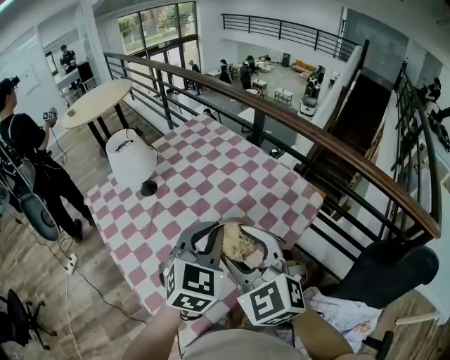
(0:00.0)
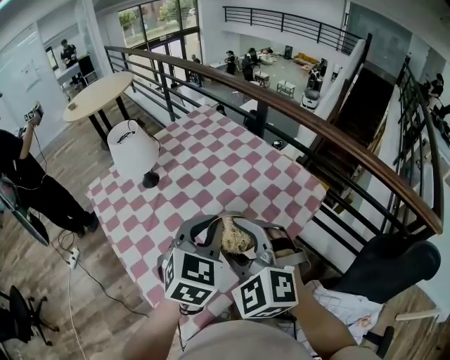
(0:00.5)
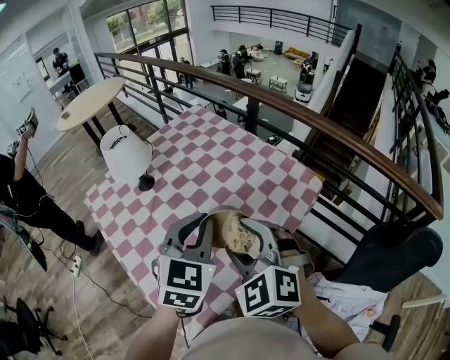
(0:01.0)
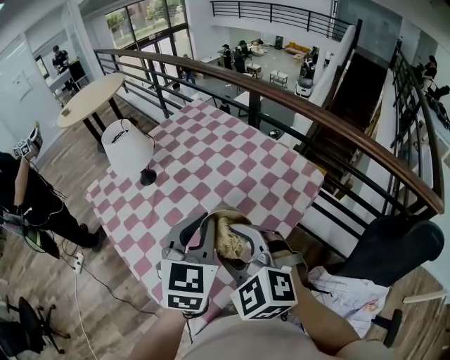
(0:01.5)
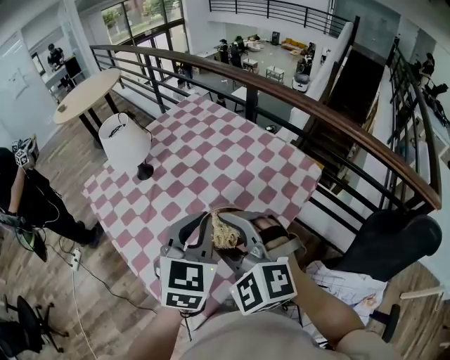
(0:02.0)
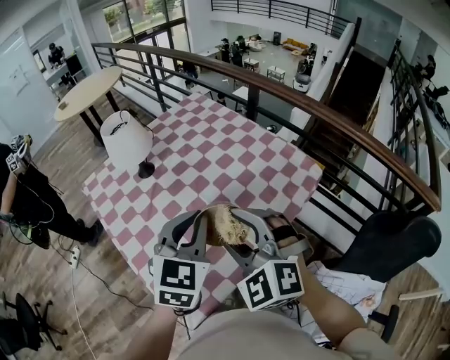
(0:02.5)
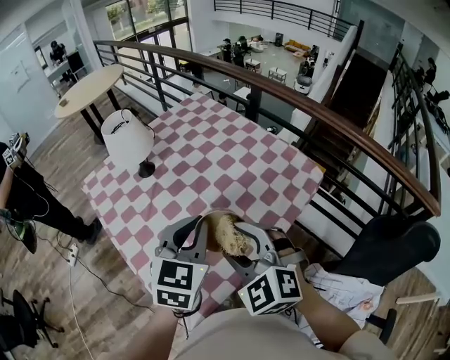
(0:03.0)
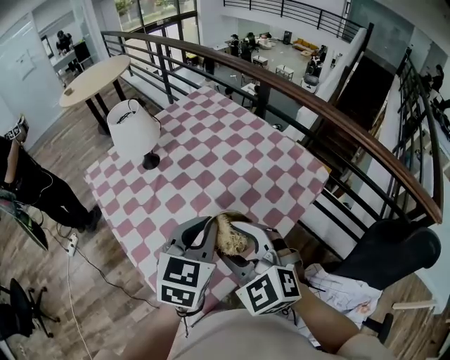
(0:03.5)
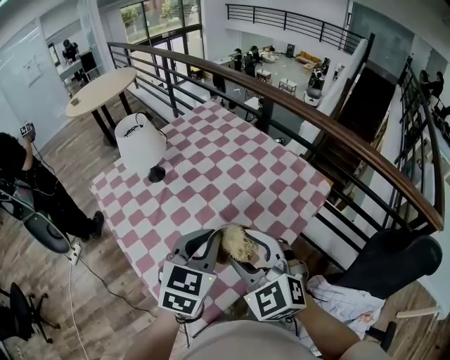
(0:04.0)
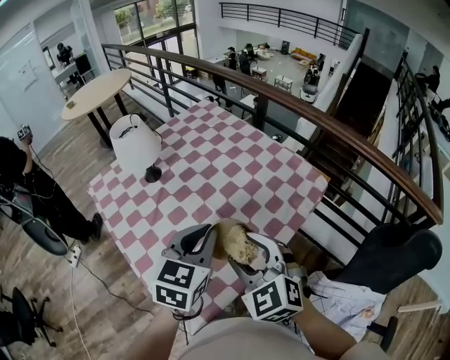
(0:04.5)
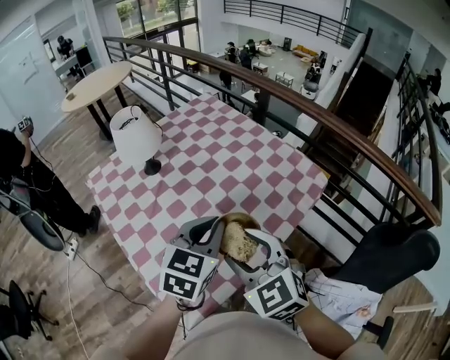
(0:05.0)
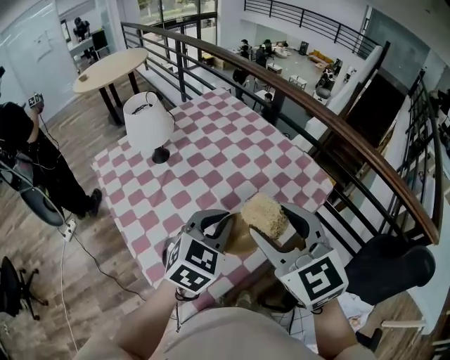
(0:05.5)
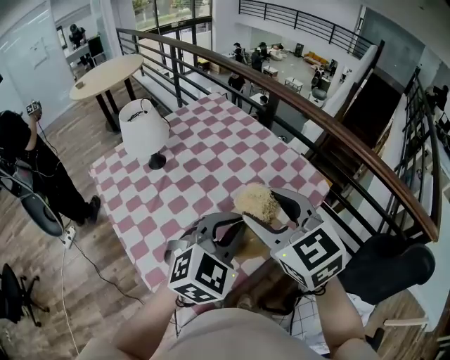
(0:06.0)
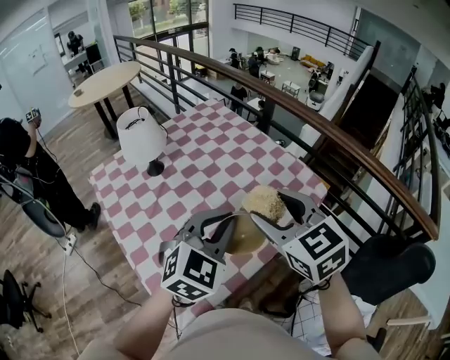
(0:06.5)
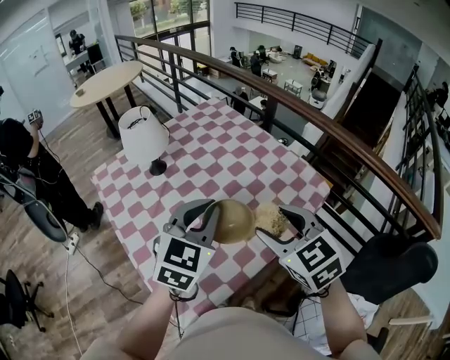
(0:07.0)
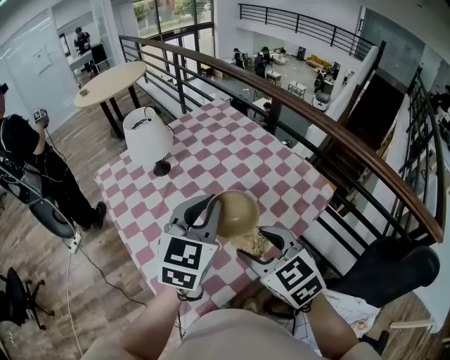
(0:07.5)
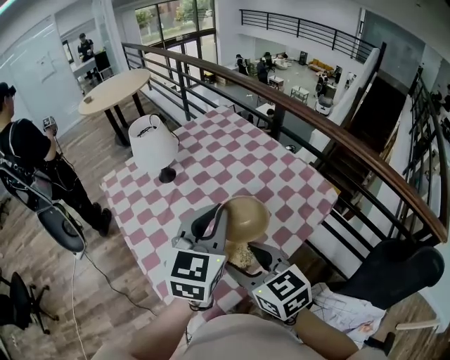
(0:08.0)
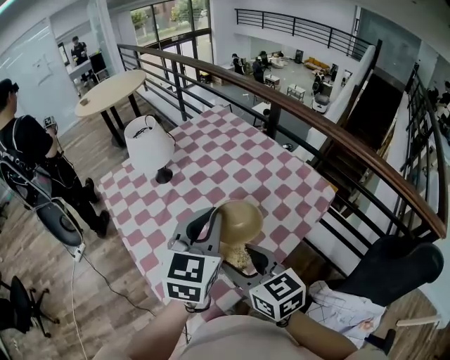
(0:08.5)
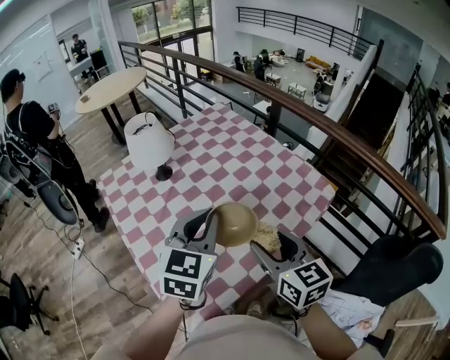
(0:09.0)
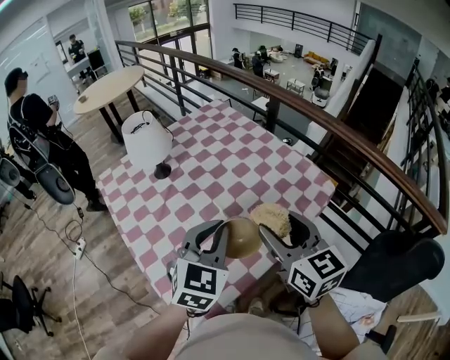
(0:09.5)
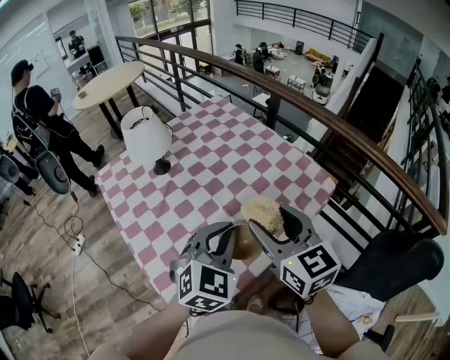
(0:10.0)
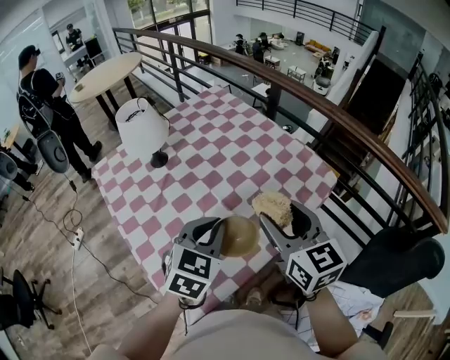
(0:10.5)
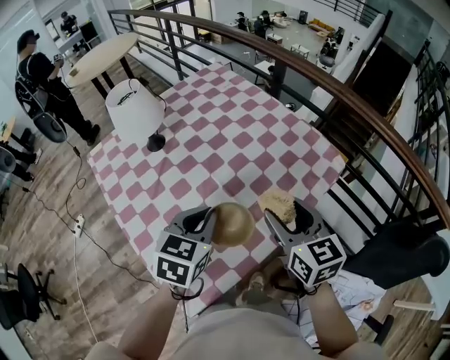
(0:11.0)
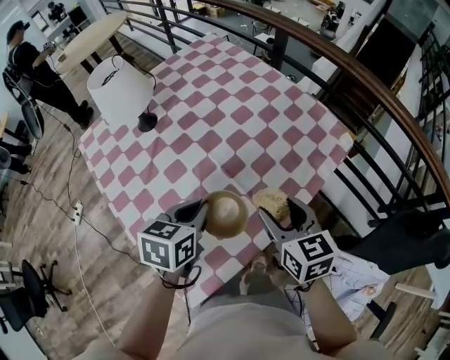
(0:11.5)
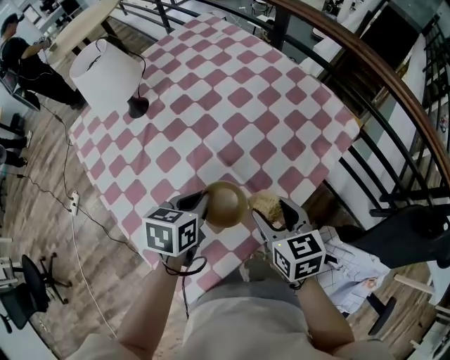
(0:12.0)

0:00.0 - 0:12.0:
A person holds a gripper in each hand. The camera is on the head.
0:00.0 - 0:02.0: The right gripper moves some 5 cm.
0:02.0 - 0:04.0: The grippers move only a little.
0:04.0 - 0:06.0: The left gripper shifts roughly 5 cm to the right, and changes its angle by approximately 30 degrees, while the right gripper is displaced upward by some 10 cm.
0:06.0 - 0:08.0: The right gripper heads downward, to the left and backward, covering approximately 10 cm, while the left gripper is displaced to the left by some 5 cm, and changes its angle by roughly 30 degrees.
0:08.0 - 0:10.0: The right gripper heads to the right and upward, covering approximately 10 cm, while the left gripper travels downward by roughly 5 cm, and rotates some 30 degrees.
0:10.0 - 0:12.0: The two grippers go some 25 cm downward. The left gripper rolls counterclockwise, seen from behind, by roughly 50 degrees. Meanwhile the right gripper changes its angle by some 30 degrees.

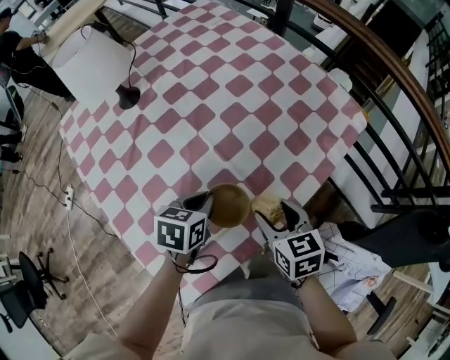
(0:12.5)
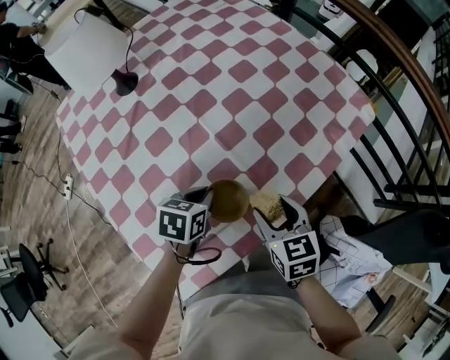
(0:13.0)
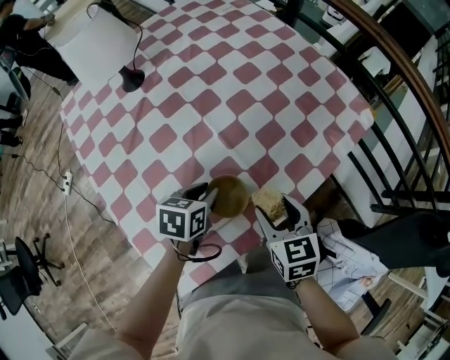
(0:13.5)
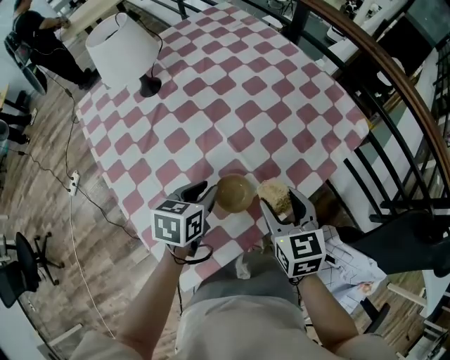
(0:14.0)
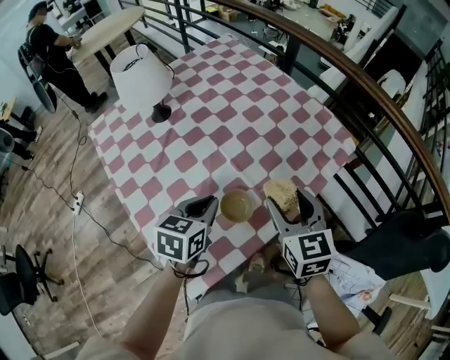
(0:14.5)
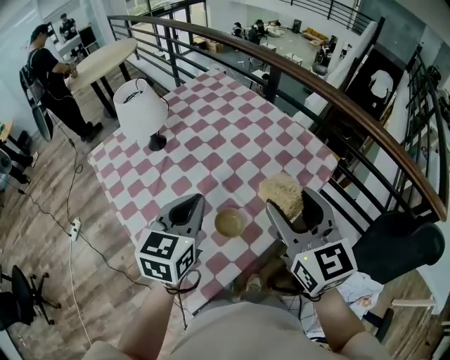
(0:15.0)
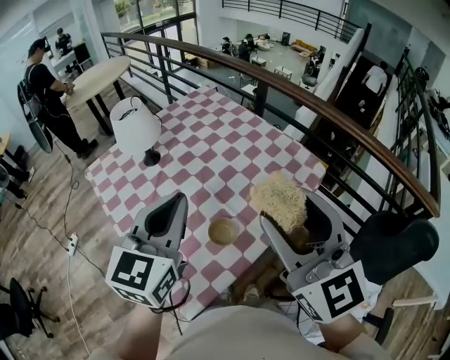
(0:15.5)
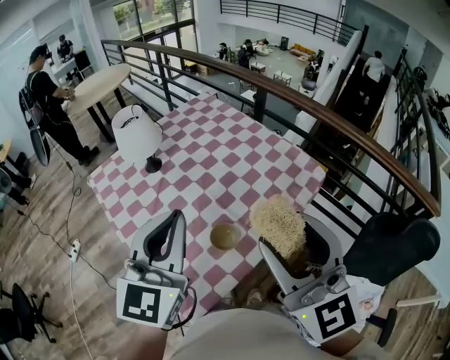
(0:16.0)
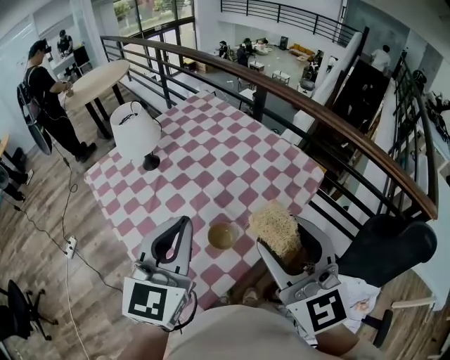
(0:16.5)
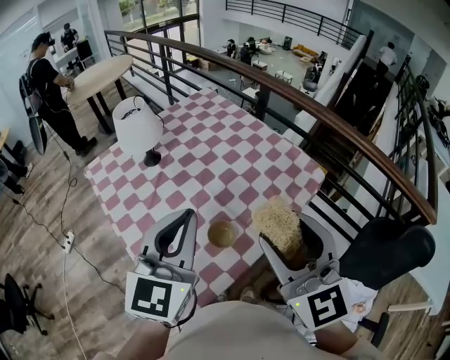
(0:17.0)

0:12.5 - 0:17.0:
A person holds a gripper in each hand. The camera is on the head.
0:12.5 - 0:14.5: The grippers both shift upward by about 15 cm. The right gripper rotates approximately 20 degrees.
0:14.5 - 0:17.0: The left gripper goes about 25 cm upward, and points its fingers about 30 degrees further upward. The right gripper goes some 25 cm upward and backward, and swivels roughly 20 degrees.

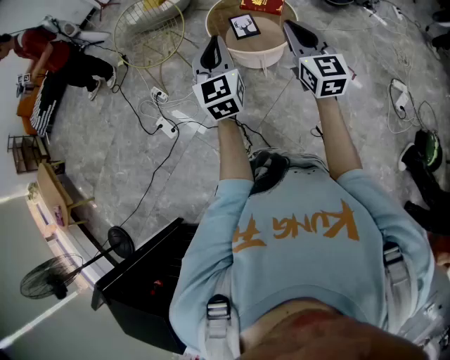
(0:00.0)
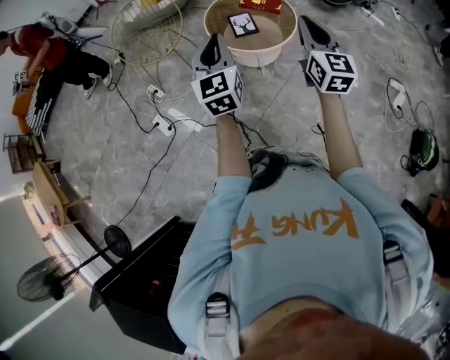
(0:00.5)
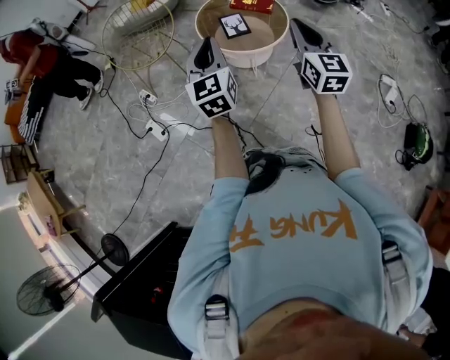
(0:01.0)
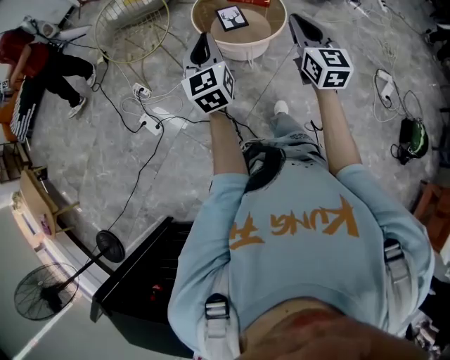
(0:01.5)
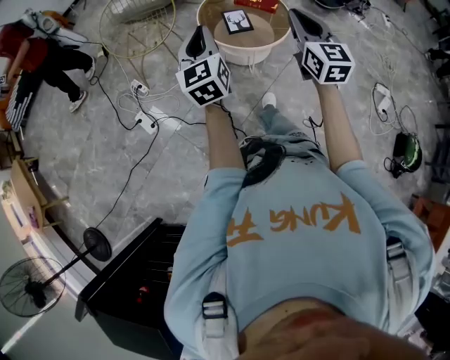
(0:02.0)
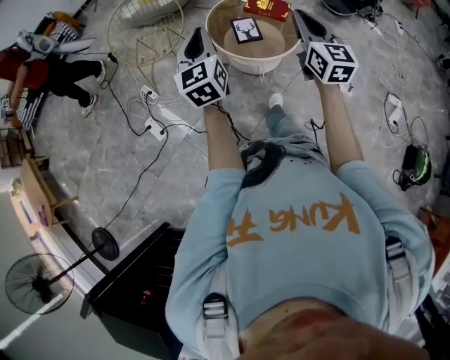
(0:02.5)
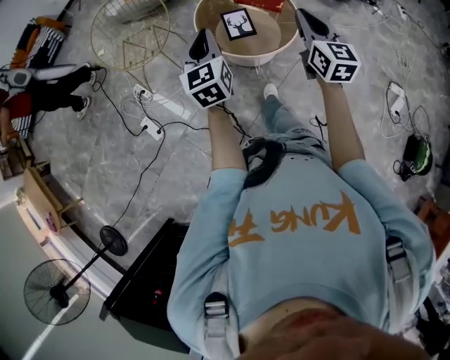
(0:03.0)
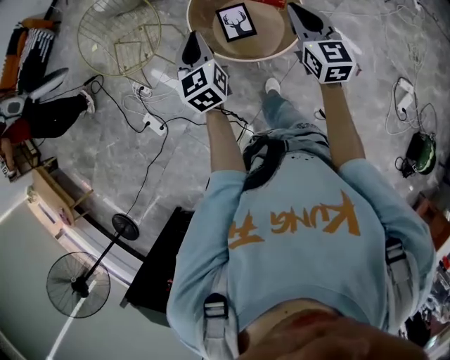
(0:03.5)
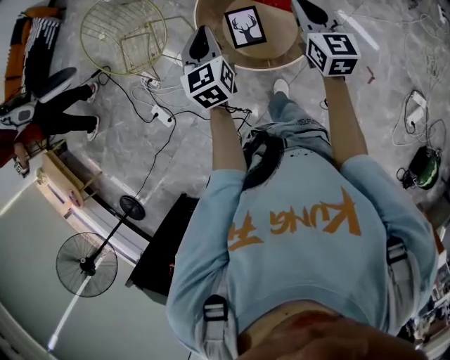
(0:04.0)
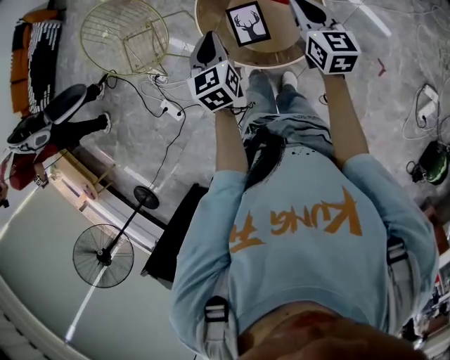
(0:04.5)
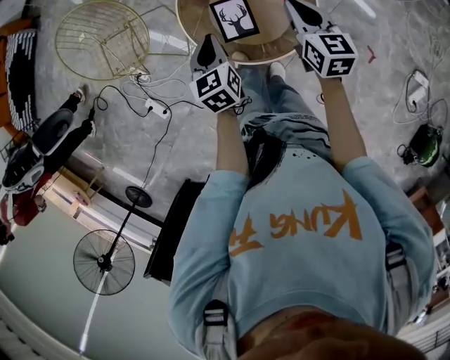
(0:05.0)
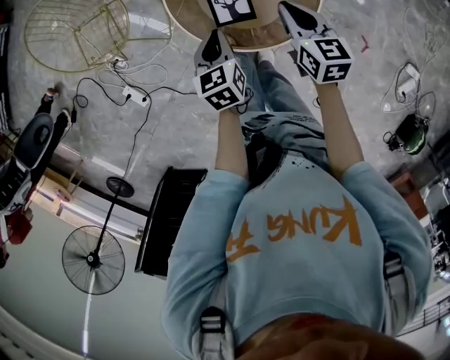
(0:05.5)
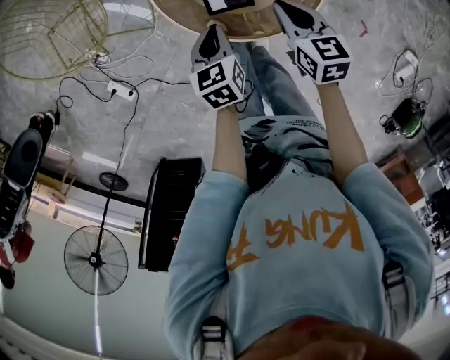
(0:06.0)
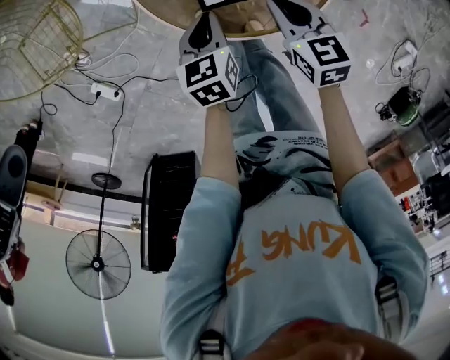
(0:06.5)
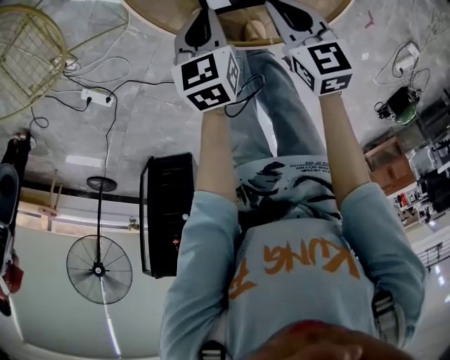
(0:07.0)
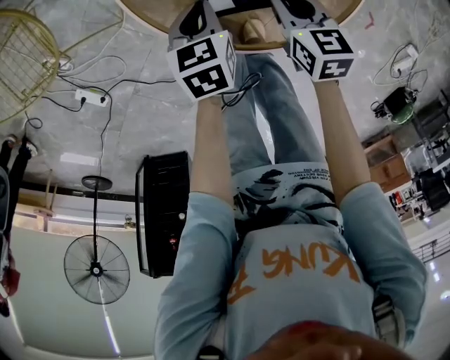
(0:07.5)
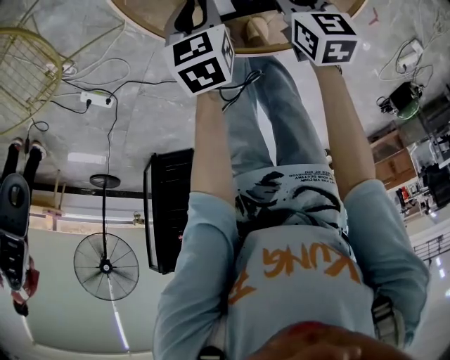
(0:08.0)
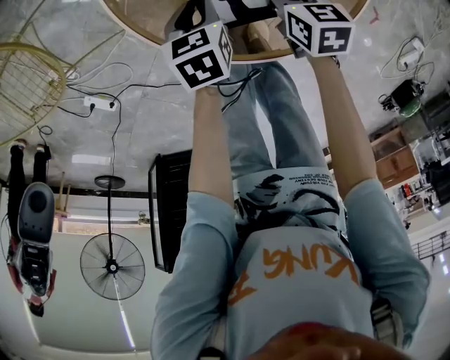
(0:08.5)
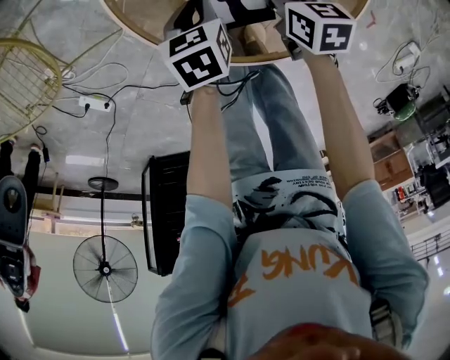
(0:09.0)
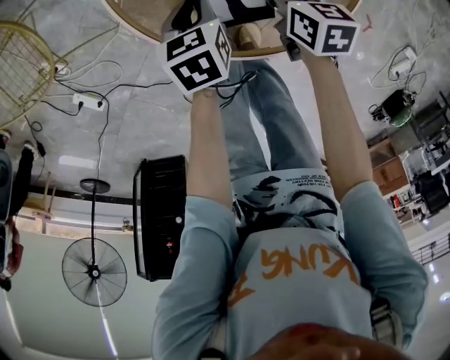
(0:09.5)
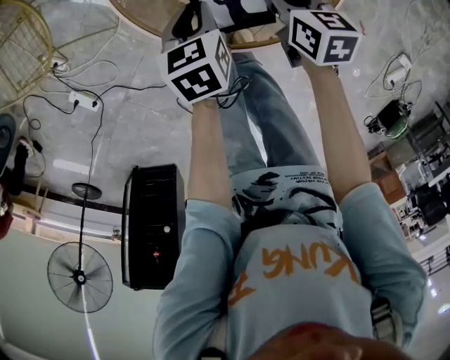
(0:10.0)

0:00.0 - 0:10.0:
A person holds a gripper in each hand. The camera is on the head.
0:00.0 - 0:02.0: The left gripper moves to the left, some 10 cm.
0:02.0 - 0:04.0: The pair of grippers is taken forward and to the right, some 50 cm. The left gripper turns by about 20 degrees.
0:04.0 - 0:06.0: The two grippers go some 30 cm downward. The left gripper rotates about 30 degrees, while the right gripper turns by approximately 30 degrees.
0:06.0 - 0:08.0: The grippers both shift downward by some 25 cm. The right gripper opens up. Meanwhile the left gripper opens.
0:08.0 - 0:10.0: Both grippers move upward, some 5 cm.
